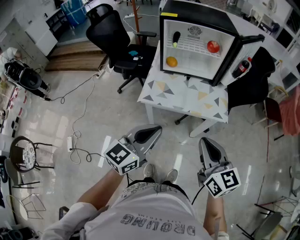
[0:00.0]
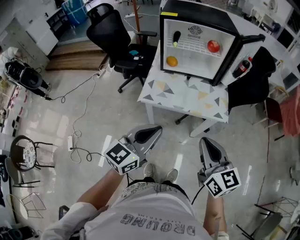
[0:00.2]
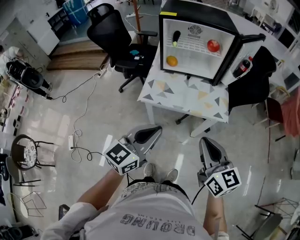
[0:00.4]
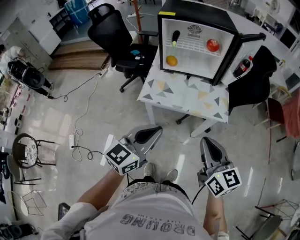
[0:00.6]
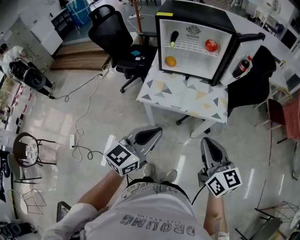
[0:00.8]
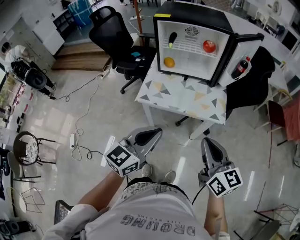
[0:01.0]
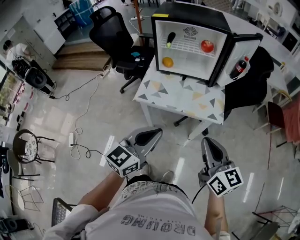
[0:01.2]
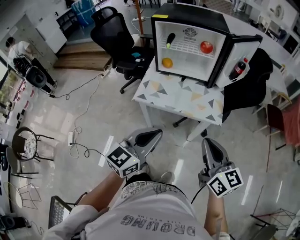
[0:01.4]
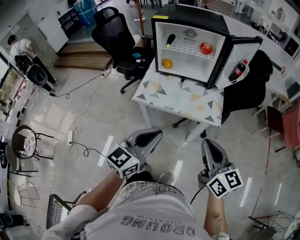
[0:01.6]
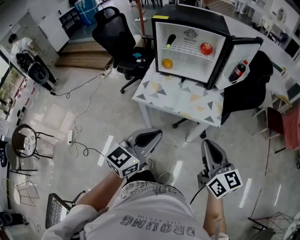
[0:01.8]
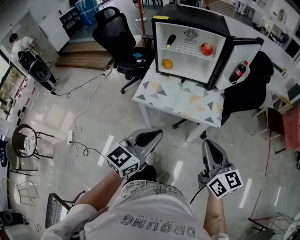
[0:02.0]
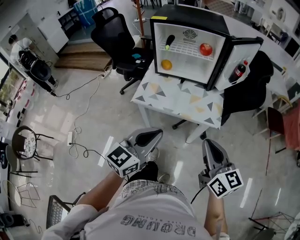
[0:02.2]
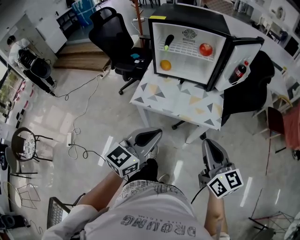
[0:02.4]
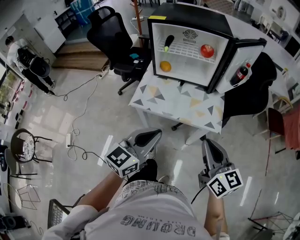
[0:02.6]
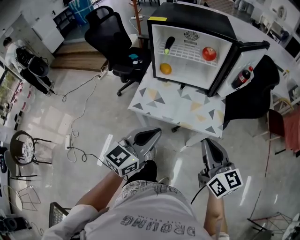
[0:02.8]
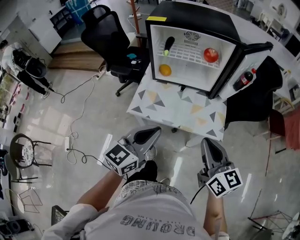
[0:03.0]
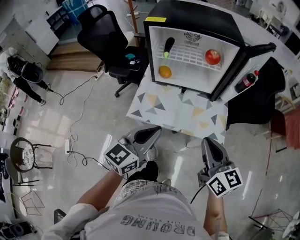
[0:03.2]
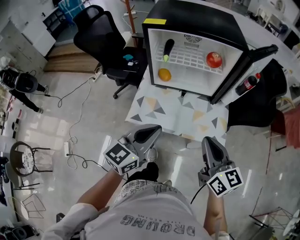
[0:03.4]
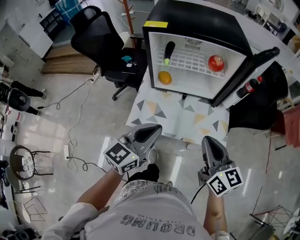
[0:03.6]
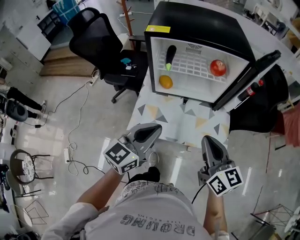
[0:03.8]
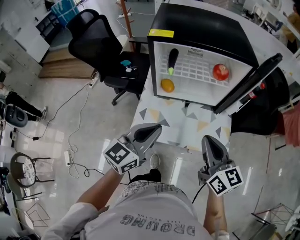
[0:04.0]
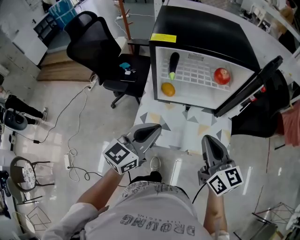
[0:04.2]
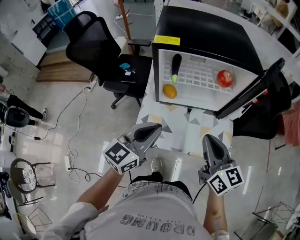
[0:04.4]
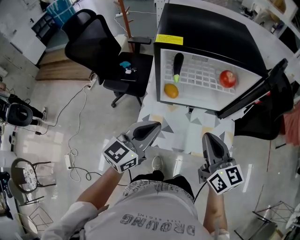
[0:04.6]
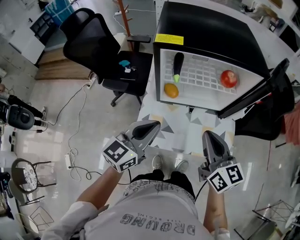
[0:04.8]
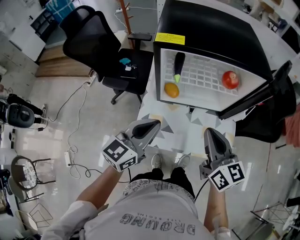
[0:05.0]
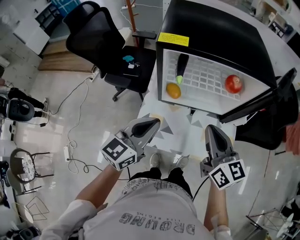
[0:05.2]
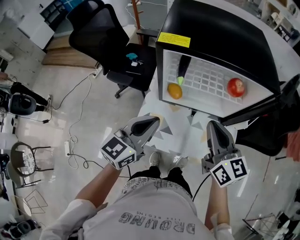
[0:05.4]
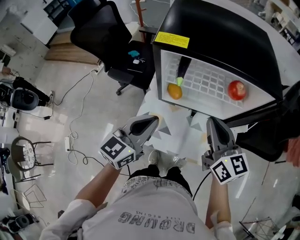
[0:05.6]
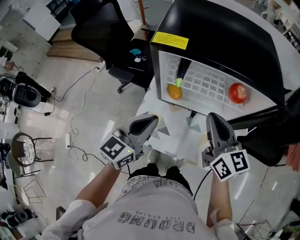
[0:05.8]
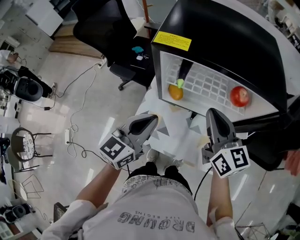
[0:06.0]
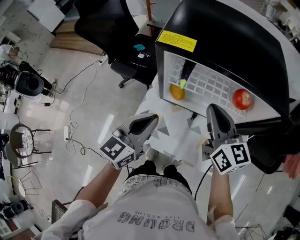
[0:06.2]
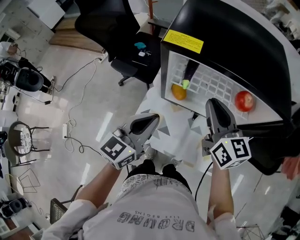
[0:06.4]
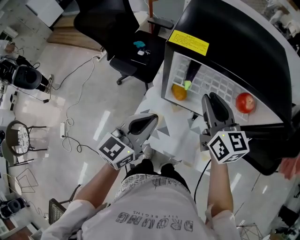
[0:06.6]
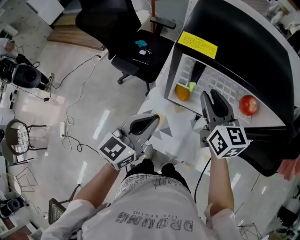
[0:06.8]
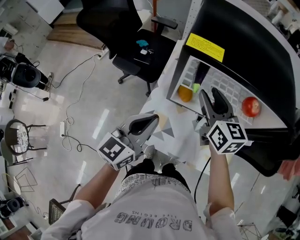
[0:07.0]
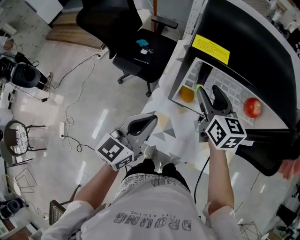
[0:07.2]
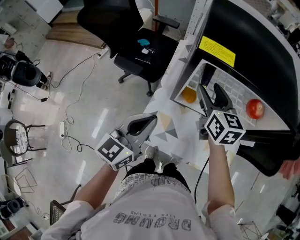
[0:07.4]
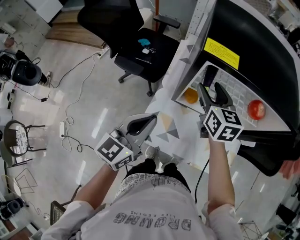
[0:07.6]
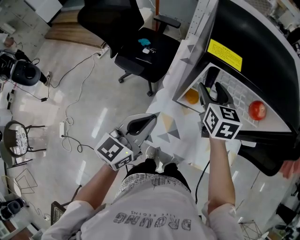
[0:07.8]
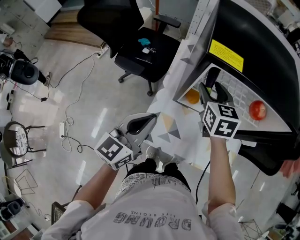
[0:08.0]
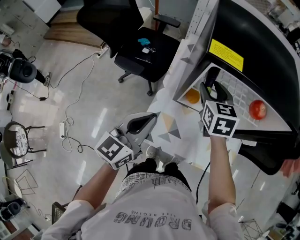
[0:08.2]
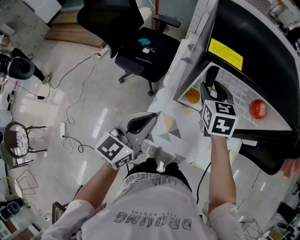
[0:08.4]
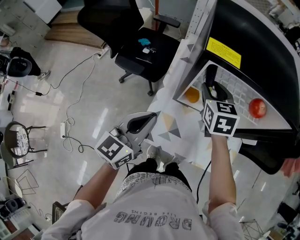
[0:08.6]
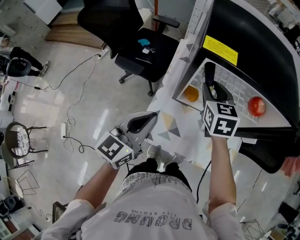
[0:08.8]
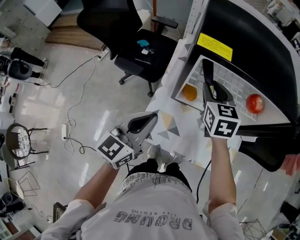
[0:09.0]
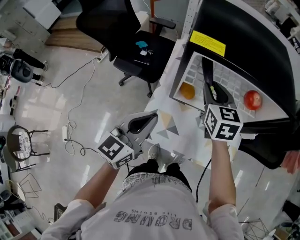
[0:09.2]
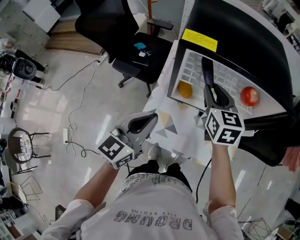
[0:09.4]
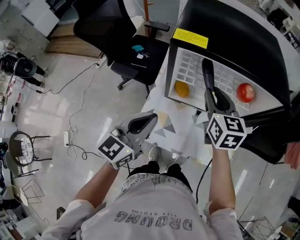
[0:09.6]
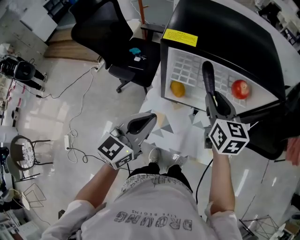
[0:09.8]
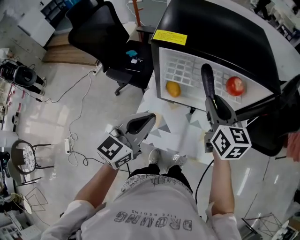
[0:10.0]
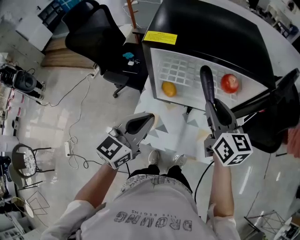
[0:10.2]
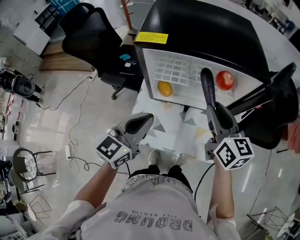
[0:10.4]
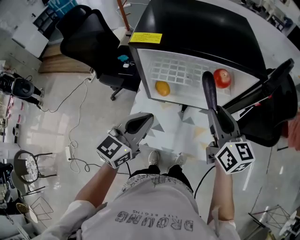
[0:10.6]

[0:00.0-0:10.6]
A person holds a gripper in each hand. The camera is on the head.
0:00.0 to 0:01.6: Both grippers move to the right, some 10 cm.
0:01.6 to 0:03.0: The two grippers go about 15 cm forward.
0:03.0 to 0:04.6: The two grippers go about 20 cm forward and to the left.
0:04.6 to 0:06.0: The right gripper goes some 15 cm forward. Meanwhile the left gripper shifts some 5 cm forward.
0:06.0 to 0:07.6: The right gripper heads forward, to the left and downward, covering approximately 15 cm, and opens. Meanwhile the left gripper travels to the left by approximately 10 cm.
0:07.6 to 0:09.0: The right gripper closes.
0:09.0 to 0:10.6: The left gripper goes approximately 10 cm to the right. Meanwhile the right gripper heads to the right and backward, covering approximately 20 cm, and changes its angle by some 30 degrees.

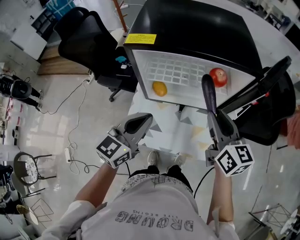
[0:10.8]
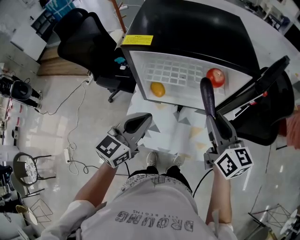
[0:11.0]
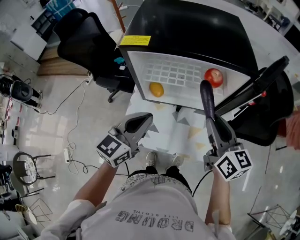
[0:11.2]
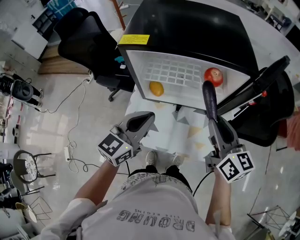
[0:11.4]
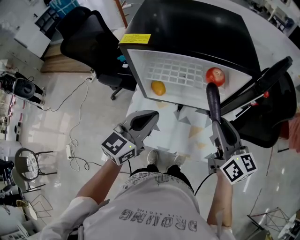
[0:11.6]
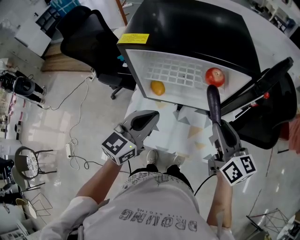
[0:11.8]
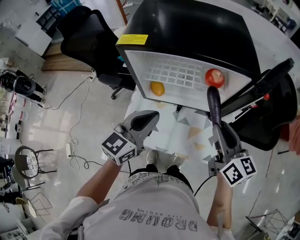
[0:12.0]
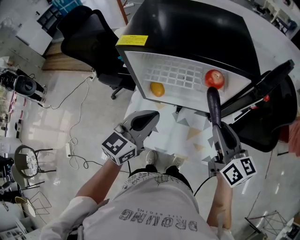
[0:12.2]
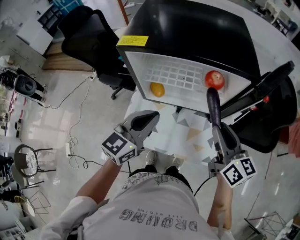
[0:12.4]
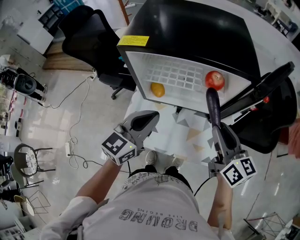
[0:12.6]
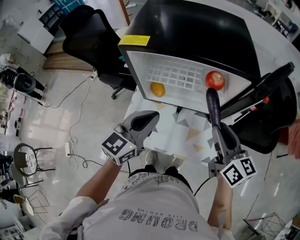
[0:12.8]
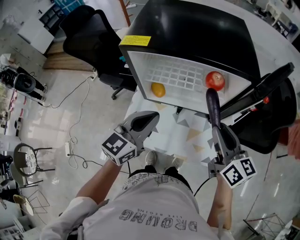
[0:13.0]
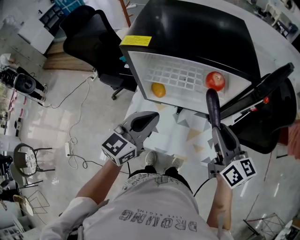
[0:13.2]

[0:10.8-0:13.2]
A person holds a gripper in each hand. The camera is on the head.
0:10.8 to 0:12.0: The right gripper moves to the right, approximately 5 cm.
0:12.0 to 0:13.2: Neither gripper changes place.

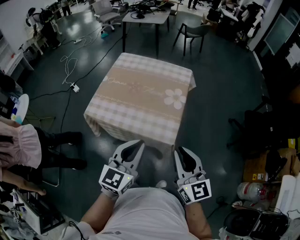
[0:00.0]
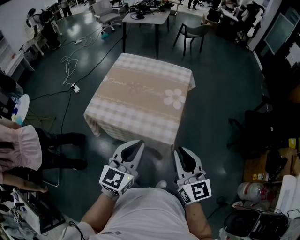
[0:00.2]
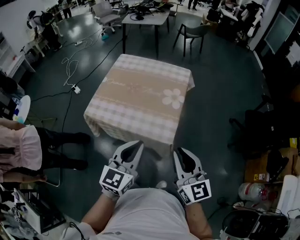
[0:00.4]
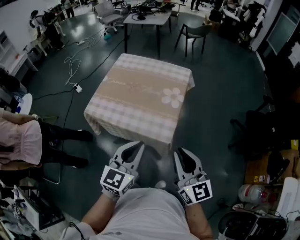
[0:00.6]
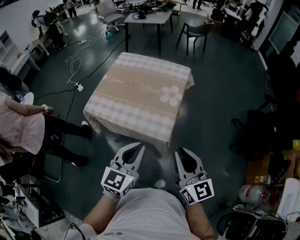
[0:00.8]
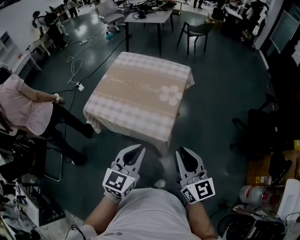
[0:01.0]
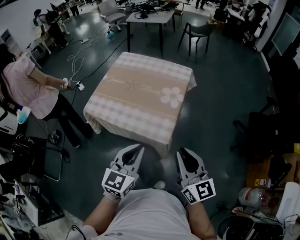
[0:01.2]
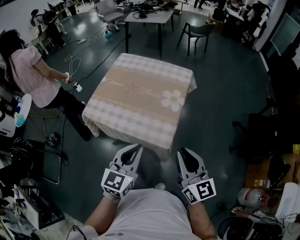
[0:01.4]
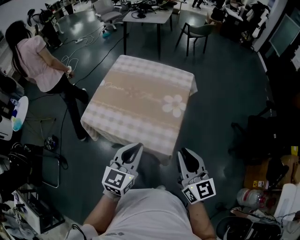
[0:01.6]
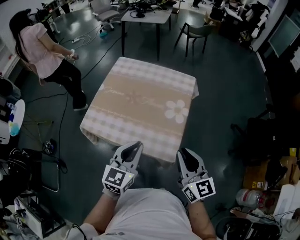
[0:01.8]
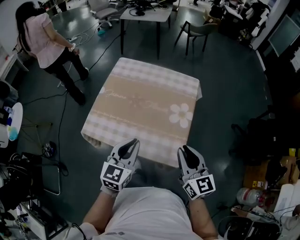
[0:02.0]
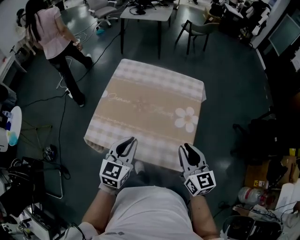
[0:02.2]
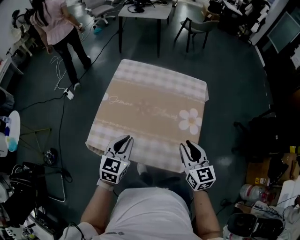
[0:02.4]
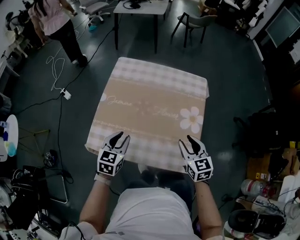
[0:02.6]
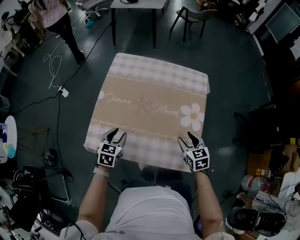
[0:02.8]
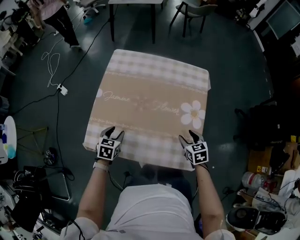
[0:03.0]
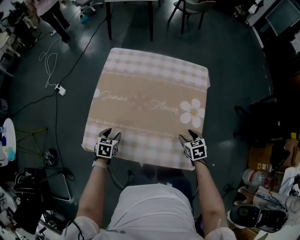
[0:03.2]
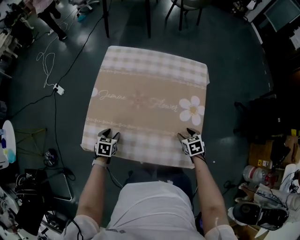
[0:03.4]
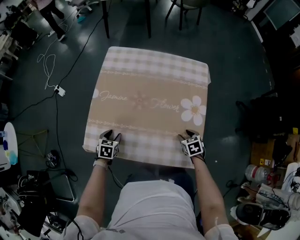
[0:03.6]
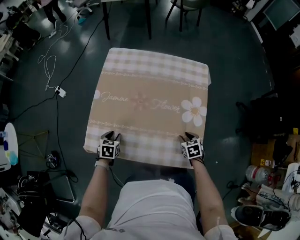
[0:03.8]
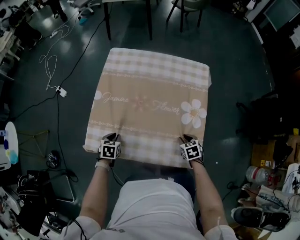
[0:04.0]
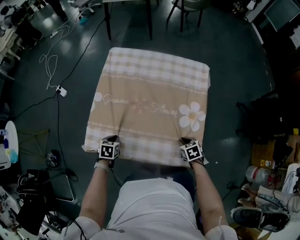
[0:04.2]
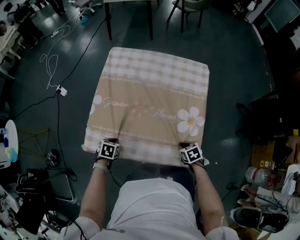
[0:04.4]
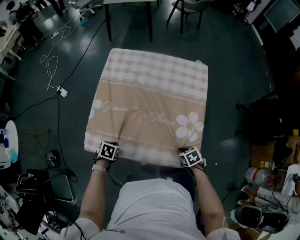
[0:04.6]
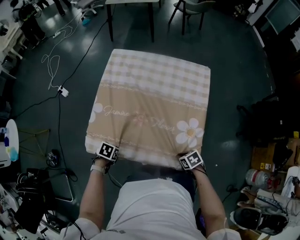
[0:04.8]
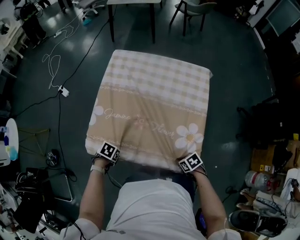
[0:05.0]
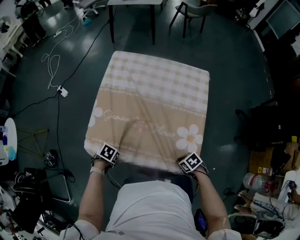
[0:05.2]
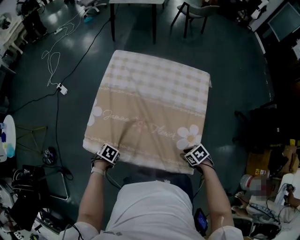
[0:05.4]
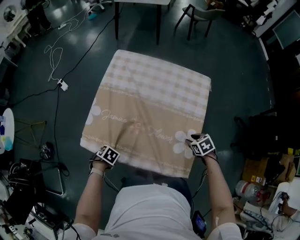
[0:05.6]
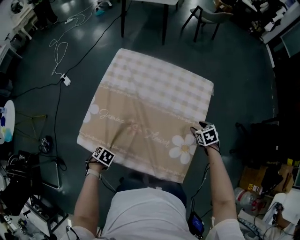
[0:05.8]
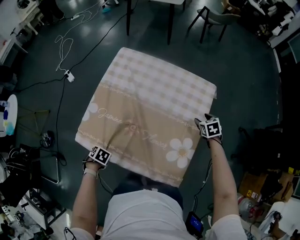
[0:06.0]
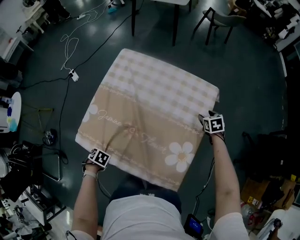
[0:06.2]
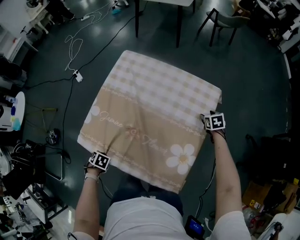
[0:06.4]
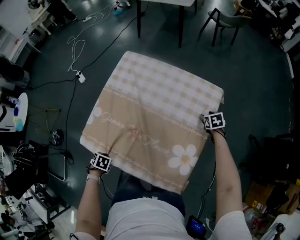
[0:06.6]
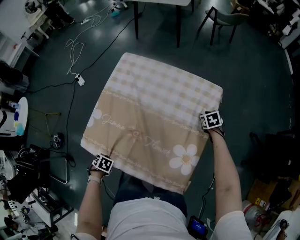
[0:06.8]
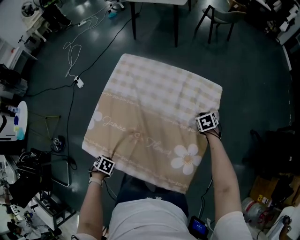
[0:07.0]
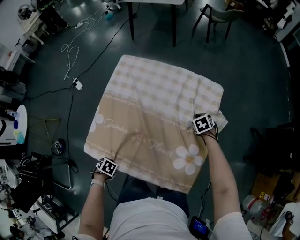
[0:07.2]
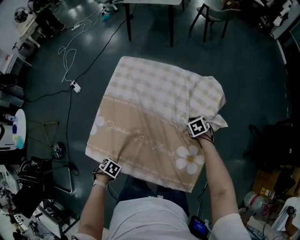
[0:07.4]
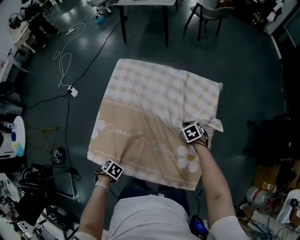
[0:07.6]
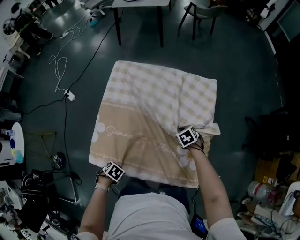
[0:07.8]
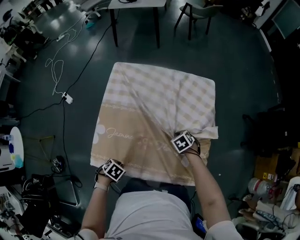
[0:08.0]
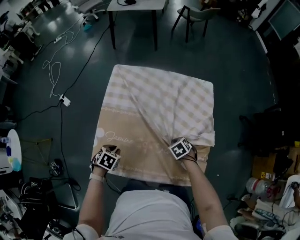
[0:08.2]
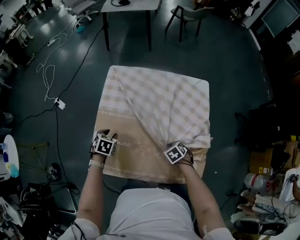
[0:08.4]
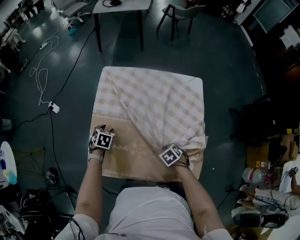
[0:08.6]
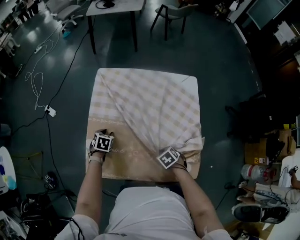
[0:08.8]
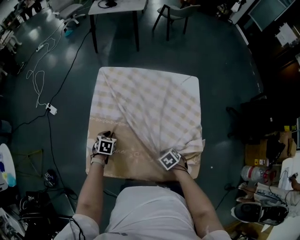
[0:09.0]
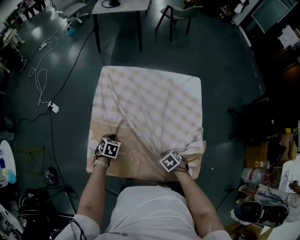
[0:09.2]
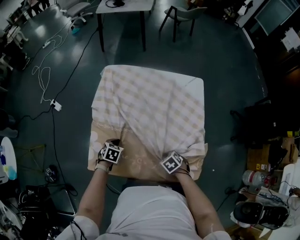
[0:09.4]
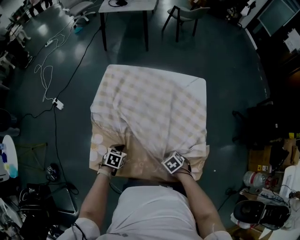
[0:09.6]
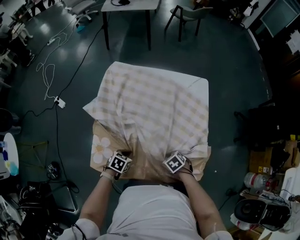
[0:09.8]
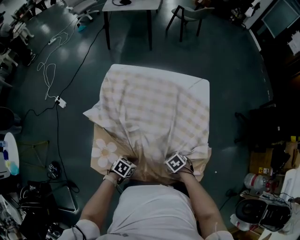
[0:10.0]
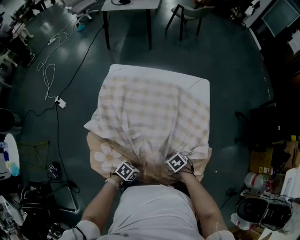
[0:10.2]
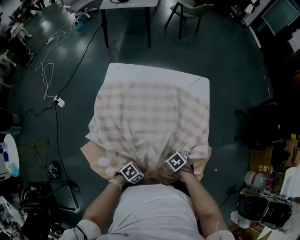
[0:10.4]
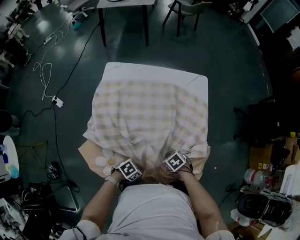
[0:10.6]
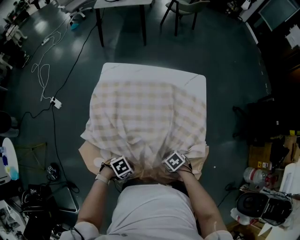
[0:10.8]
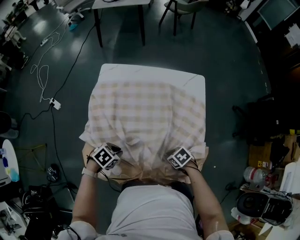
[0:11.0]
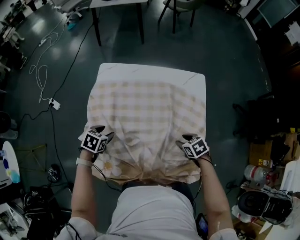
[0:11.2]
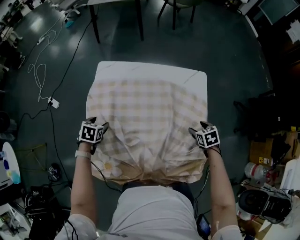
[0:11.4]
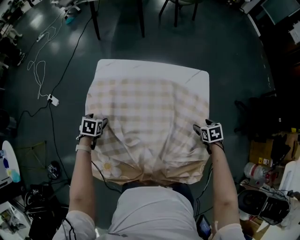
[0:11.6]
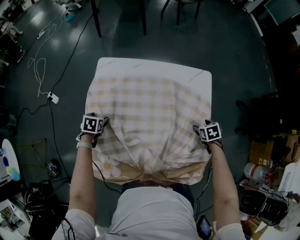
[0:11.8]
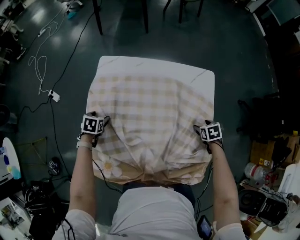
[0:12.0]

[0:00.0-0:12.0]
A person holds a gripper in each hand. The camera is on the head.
0:00.0 to 0:01.6: The grippers both shift forward by about 5 cm.
0:01.6 to 0:03.0: The right gripper shifts about 35 cm downward and forward, tilts its fingers roughly 50 degrees downward, and opens its fingers. The left gripper goes some 50 cm downward, to the left and forward, tips its fingers downward by about 40 degrees, and opens its fingers.
0:03.0 to 0:04.4: The two grippers go some 10 cm downward and backward. The left gripper rotates about 20 degrees, and closes up; the right gripper swivels about 20 degrees, and closes up.
0:04.4 to 0:06.0: The right gripper shifts by some 30 cm, and opens its fingers, while the left gripper swivels roughly 20 degrees.
0:06.0 to 0:07.6: The right gripper shifts by about 15 cm, and closes up.
0:07.6 to 0:09.0: The left gripper ends up roughly 25 cm from where it was, and changes its angle by about 40 degrees, while the right gripper moves approximately 20 cm.
0:09.0 to 0:10.4: The left gripper changes place by roughly 30 cm, and turns by about 50 degrees.
0:10.4 to 0:12.0: The left gripper moves some 5 cm upward and comes back, rotates about 50 degrees, and opens up, while the right gripper moves roughly 30 cm, rotates about 30 degrees, and opens up.
